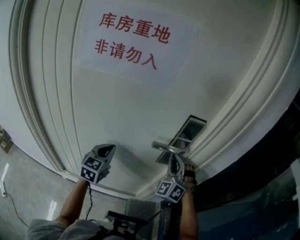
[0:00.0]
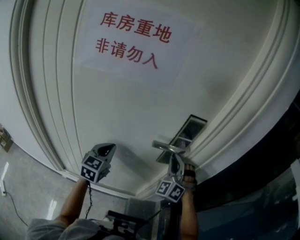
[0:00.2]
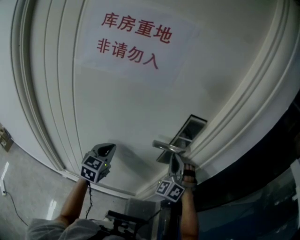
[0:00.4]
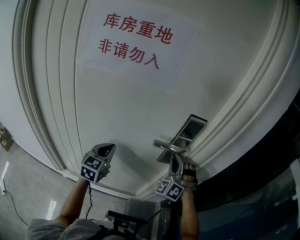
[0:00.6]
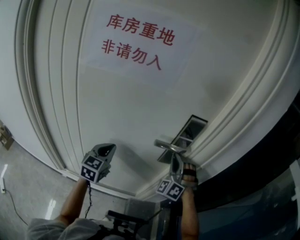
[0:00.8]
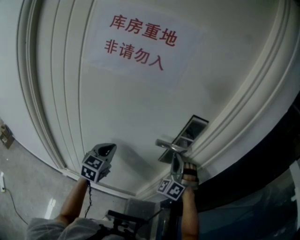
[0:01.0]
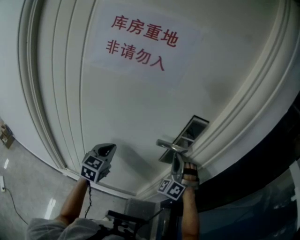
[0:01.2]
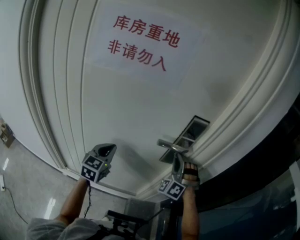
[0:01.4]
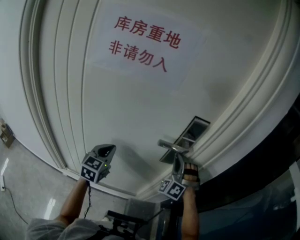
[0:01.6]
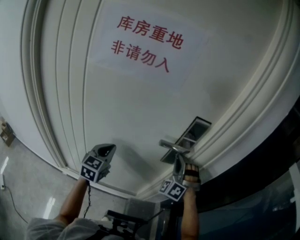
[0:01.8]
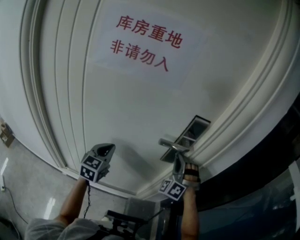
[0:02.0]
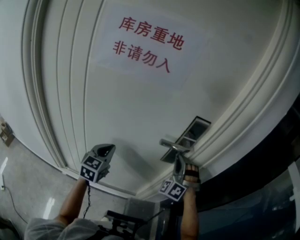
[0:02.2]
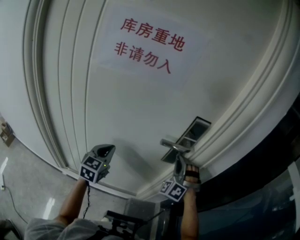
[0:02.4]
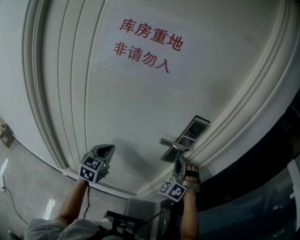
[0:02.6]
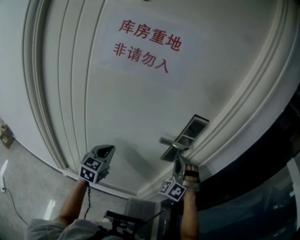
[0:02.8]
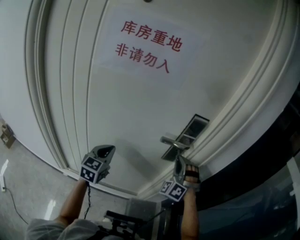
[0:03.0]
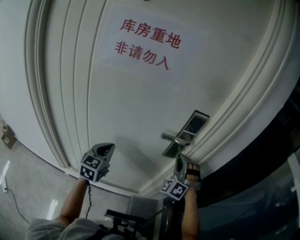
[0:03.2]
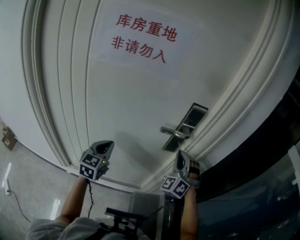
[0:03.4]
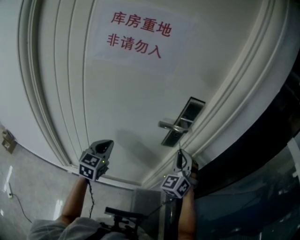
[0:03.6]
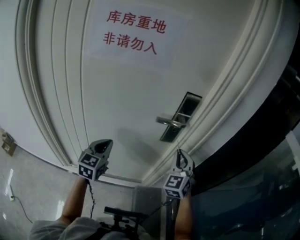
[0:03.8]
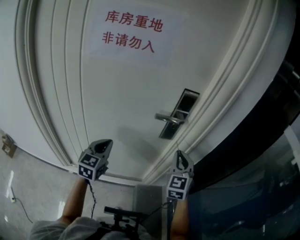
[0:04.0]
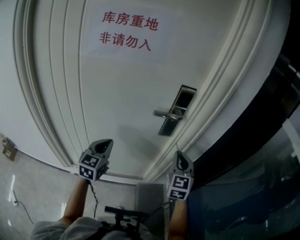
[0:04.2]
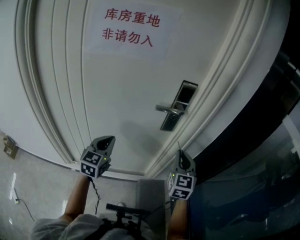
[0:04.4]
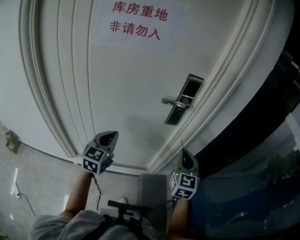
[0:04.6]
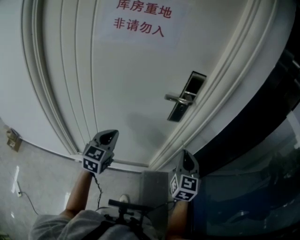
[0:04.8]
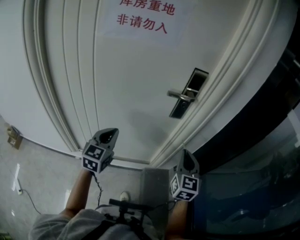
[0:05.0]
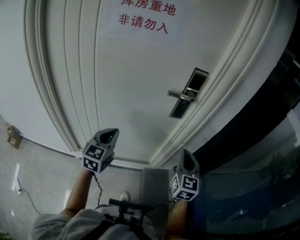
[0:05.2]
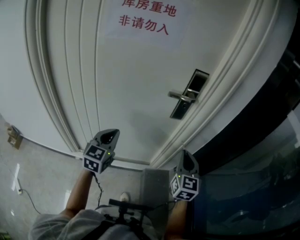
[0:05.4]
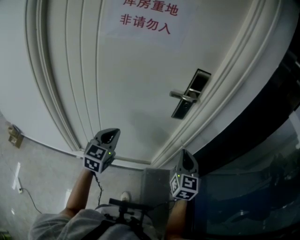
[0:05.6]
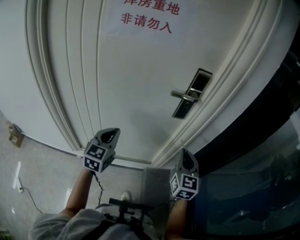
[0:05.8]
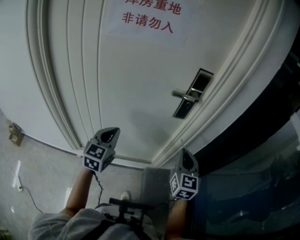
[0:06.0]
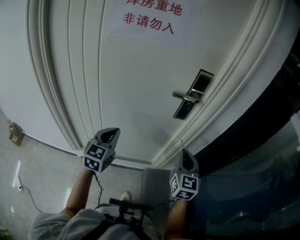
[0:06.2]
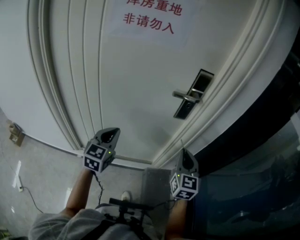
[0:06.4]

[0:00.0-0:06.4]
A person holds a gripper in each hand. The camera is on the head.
0:00.0 to 0:01.6: The grippers stay close to where they were, moving slightly.
0:01.6 to 0:03.2: The grippers make only small movements.
0:03.2 to 0:04.8: The right gripper heads backward, covering some 15 cm, and twists approximately 70 degrees clockwise, seen from behind, while the left gripper goes roughly 10 cm backward.
0:04.8 to 0:06.4: The grippers make only small movements.

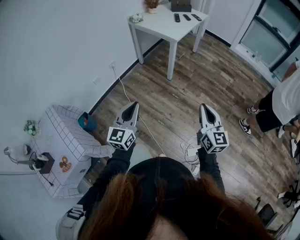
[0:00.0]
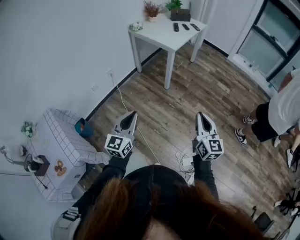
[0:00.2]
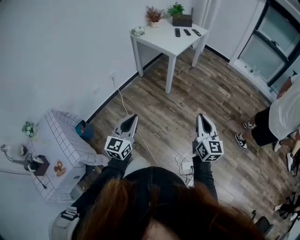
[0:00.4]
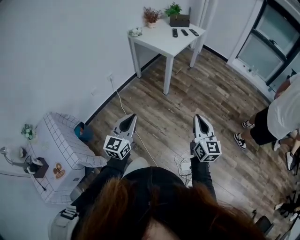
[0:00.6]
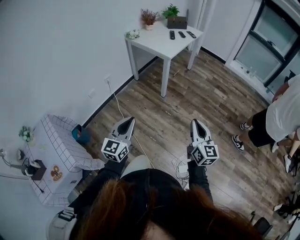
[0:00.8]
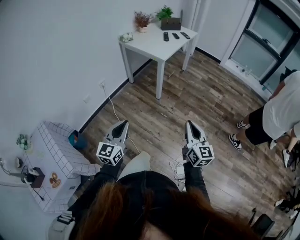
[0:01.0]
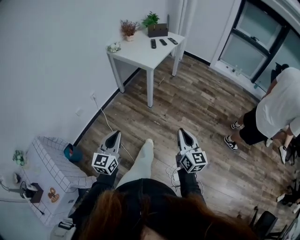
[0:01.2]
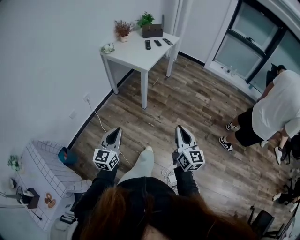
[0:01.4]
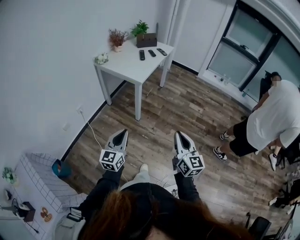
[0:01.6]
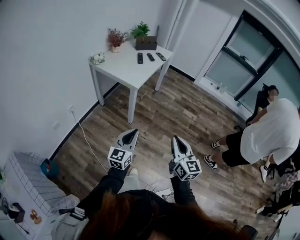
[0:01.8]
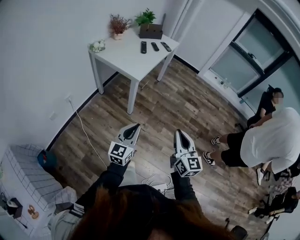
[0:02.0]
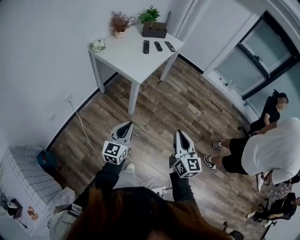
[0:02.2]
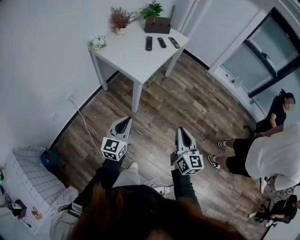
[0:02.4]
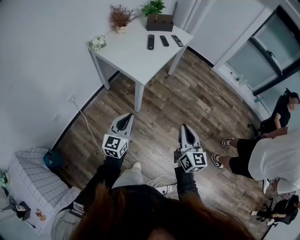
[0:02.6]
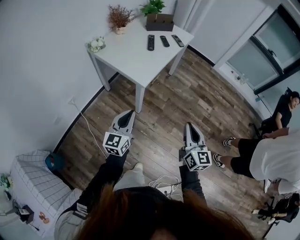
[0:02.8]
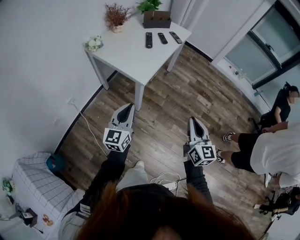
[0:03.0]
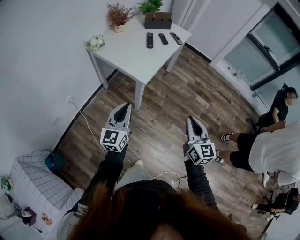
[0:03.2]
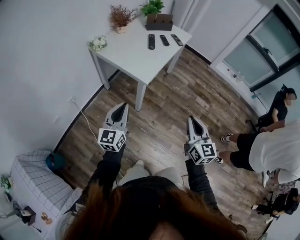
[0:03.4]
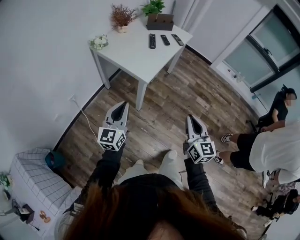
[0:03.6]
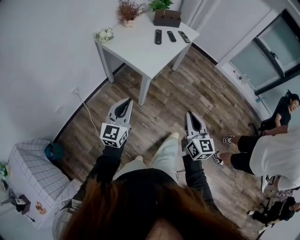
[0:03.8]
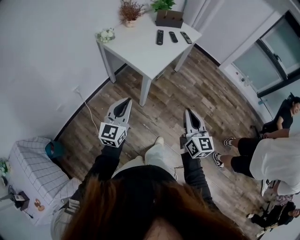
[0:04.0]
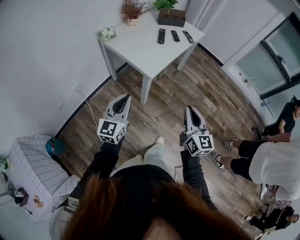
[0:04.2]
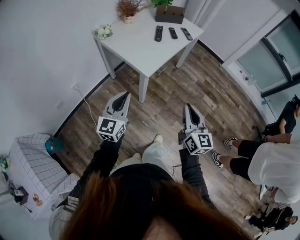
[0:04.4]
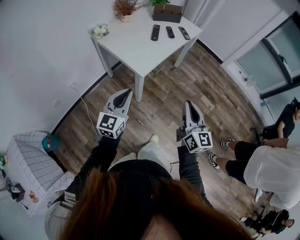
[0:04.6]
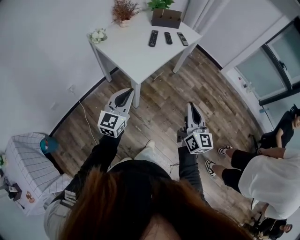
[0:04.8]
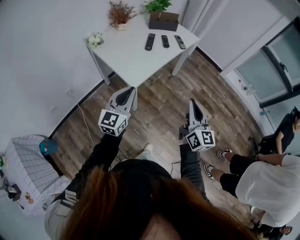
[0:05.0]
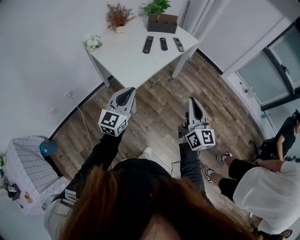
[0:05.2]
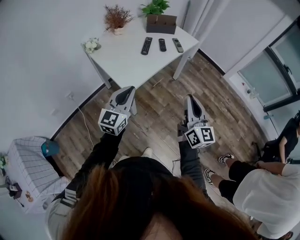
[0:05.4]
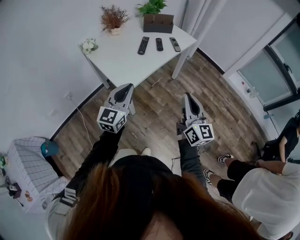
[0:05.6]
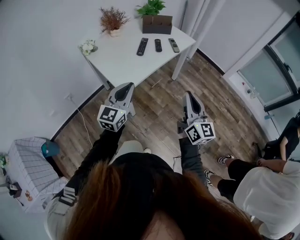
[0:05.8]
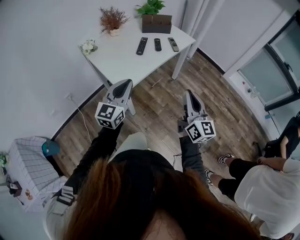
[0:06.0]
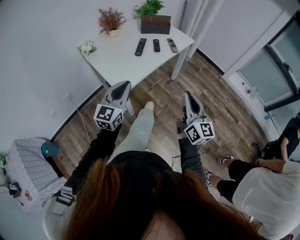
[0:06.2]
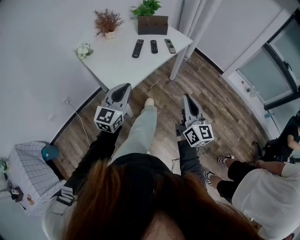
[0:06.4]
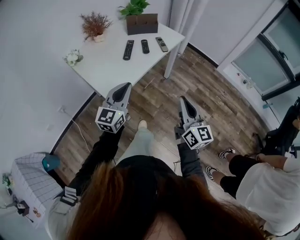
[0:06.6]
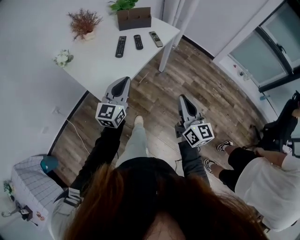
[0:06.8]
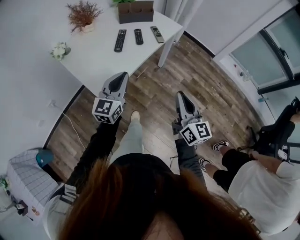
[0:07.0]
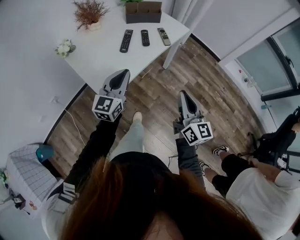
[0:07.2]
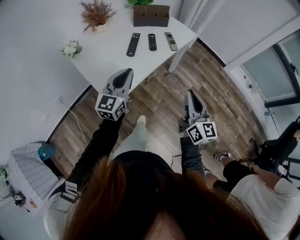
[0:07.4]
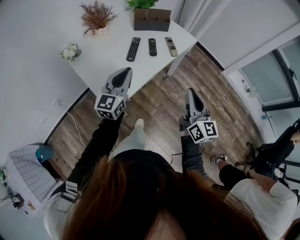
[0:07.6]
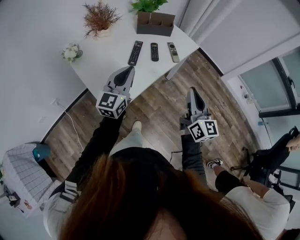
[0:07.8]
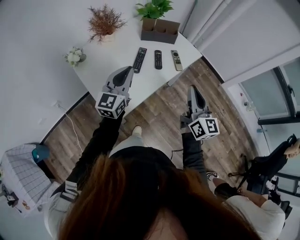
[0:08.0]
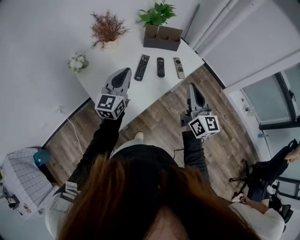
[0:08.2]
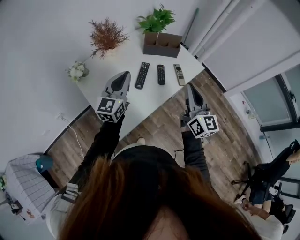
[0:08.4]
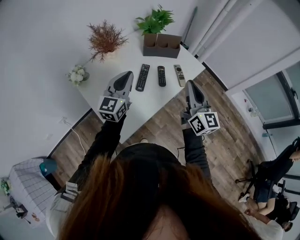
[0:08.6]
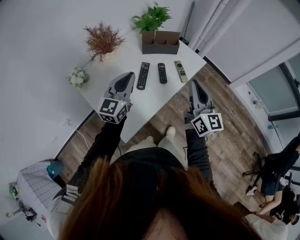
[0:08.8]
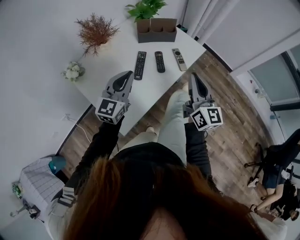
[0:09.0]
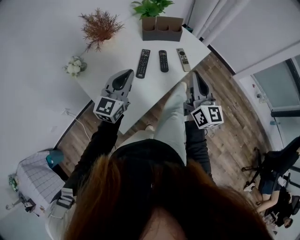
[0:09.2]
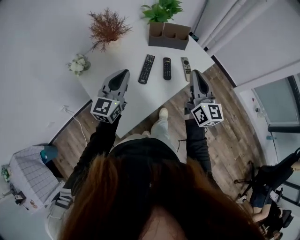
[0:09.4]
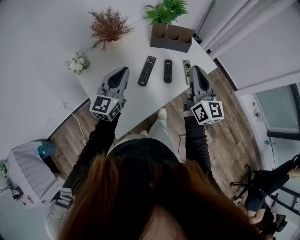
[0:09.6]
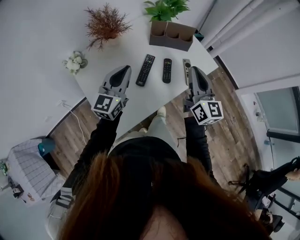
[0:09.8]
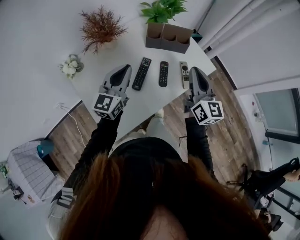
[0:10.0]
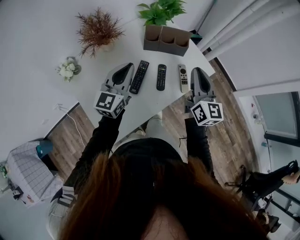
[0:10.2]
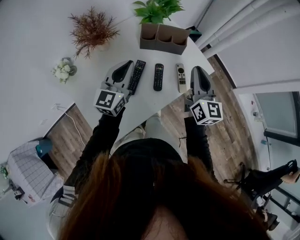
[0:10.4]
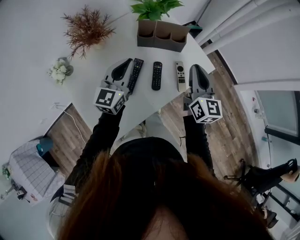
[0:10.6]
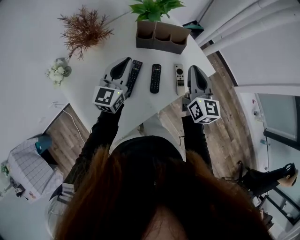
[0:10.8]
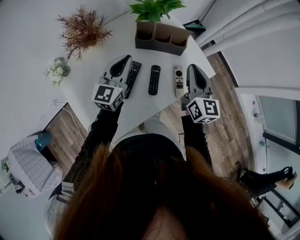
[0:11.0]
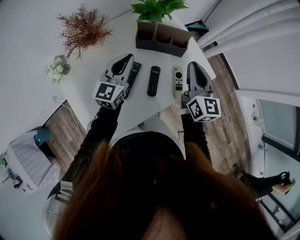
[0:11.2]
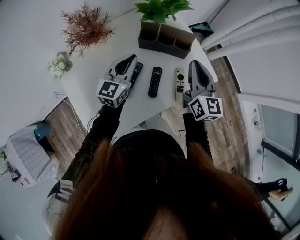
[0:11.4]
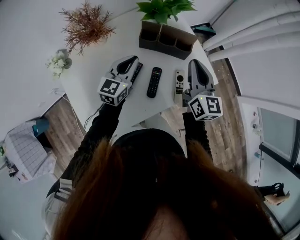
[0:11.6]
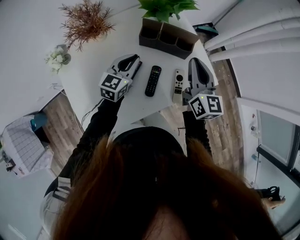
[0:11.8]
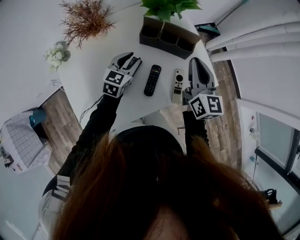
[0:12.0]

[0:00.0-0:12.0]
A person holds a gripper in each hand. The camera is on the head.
0:00.0 to 0:01.6: The left gripper heads forward and to the right, covering approximately 20 cm, while the right gripper is displaced forward and to the right by roughly 15 cm.
0:01.6 to 0:03.0: The two grippers go some 30 cm forward.
0:04.4 to 0:06.0: The left gripper is displaced to the right and forward by about 20 cm; the right gripper is displaced forward and to the right by roughly 25 cm.
0:06.0 to 0:07.6: The two grippers go approximately 20 cm forward.
0:07.6 to 0:09.0: The left gripper heads forward, covering roughly 10 cm. Meanwhile the right gripper travels forward by roughly 15 cm.
0:09.0 to 0:10.4: Both grippers move forward, some 15 cm.
0:10.4 to 0:12.0: The right gripper heads forward, covering roughly 10 cm, while the left gripper travels downward and forward by some 20 cm, rotates some 30 degrees, and opens its fingers.

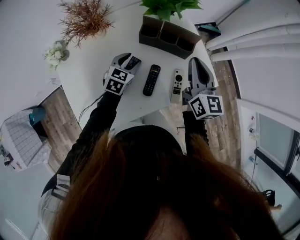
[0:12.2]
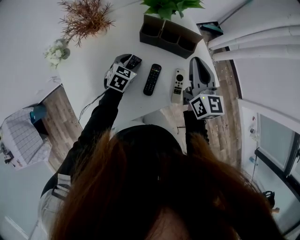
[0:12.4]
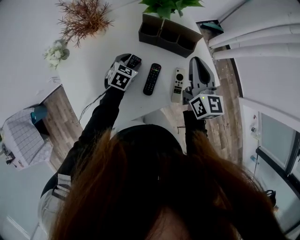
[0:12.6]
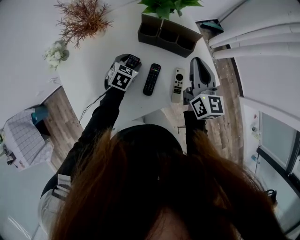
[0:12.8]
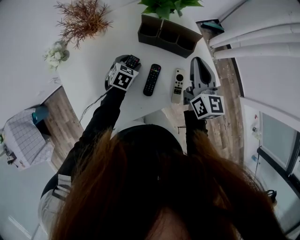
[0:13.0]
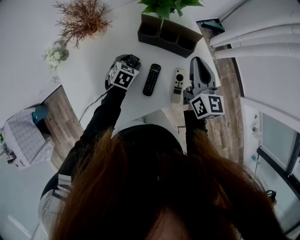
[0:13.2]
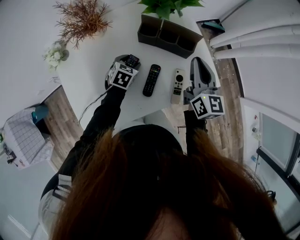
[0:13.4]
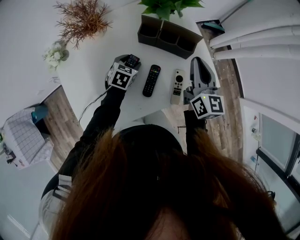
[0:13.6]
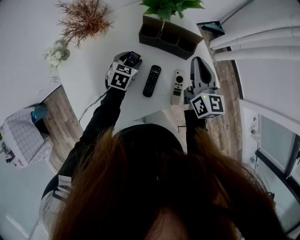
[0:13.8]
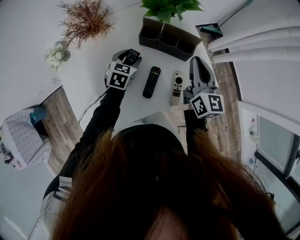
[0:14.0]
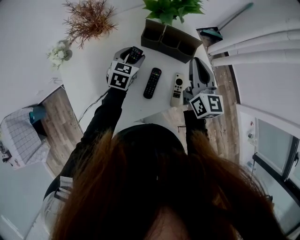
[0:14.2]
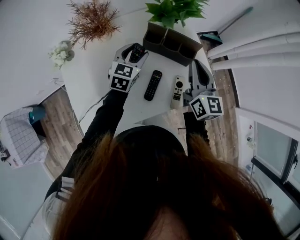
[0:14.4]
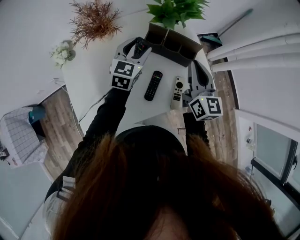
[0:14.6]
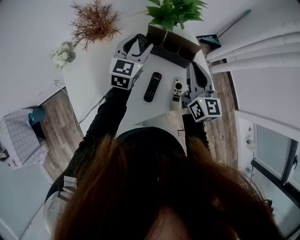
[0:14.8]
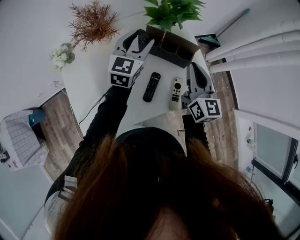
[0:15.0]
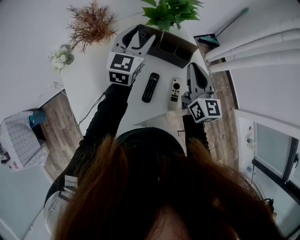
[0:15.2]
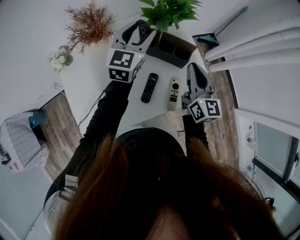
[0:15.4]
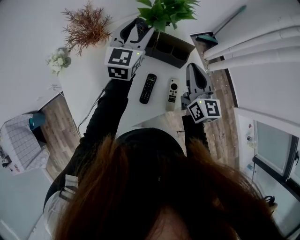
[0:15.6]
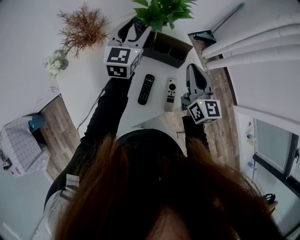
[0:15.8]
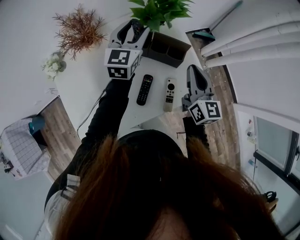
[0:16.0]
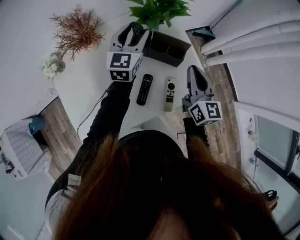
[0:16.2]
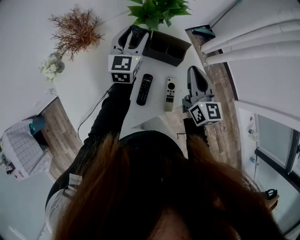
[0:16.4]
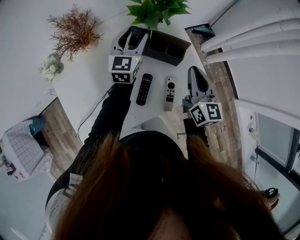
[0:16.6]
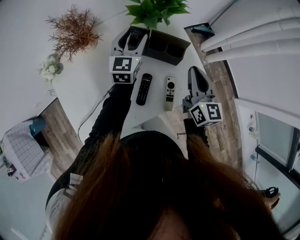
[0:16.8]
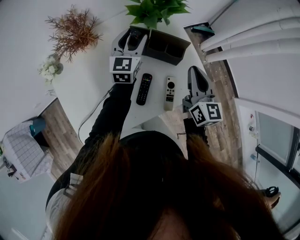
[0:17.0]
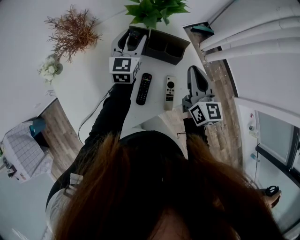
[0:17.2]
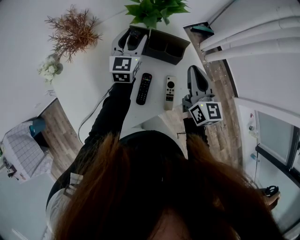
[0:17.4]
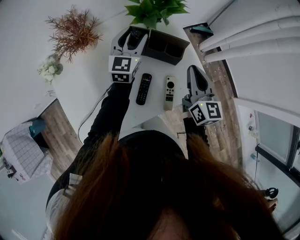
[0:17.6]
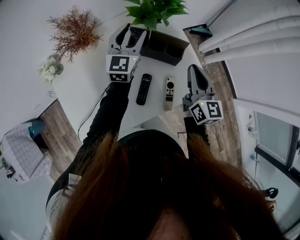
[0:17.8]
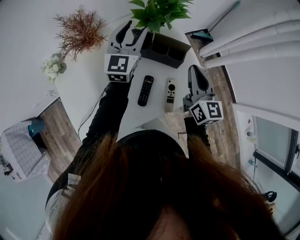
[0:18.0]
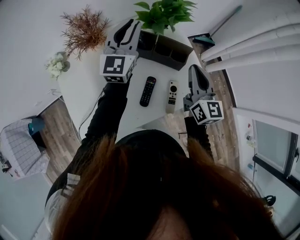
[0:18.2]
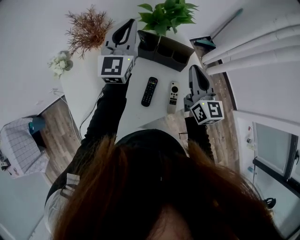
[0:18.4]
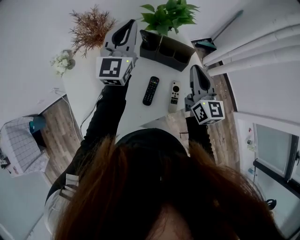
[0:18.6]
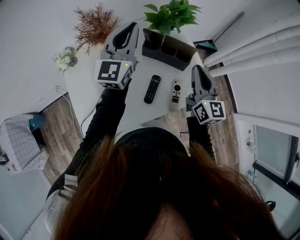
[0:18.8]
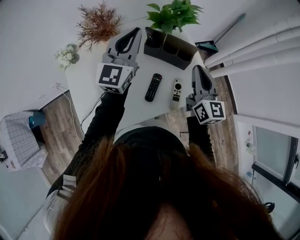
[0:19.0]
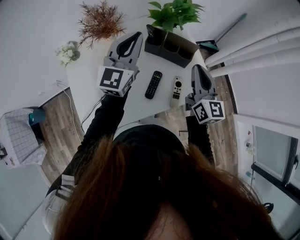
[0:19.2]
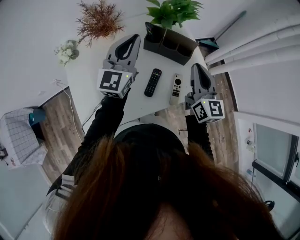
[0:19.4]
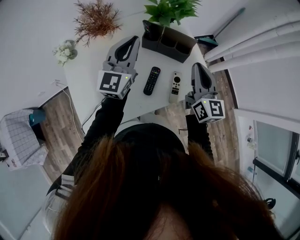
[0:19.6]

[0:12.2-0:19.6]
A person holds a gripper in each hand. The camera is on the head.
0:12.2 to 0:13.6: There are only small adjustments of the grippers.
0:13.6 to 0:15.2: The left gripper shifts some 25 cm upward, and points its fingers about 40 degrees further upward.
0:15.2 to 0:16.6: The left gripper shifts about 5 cm downward.
0:16.6 to 0:18.2: The left gripper travels upward by some 10 cm, and closes.
0:18.2 to 0:19.6: The left gripper goes roughly 10 cm backward.
